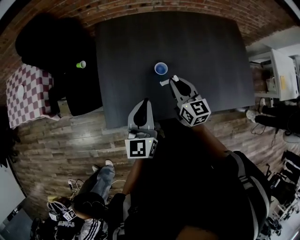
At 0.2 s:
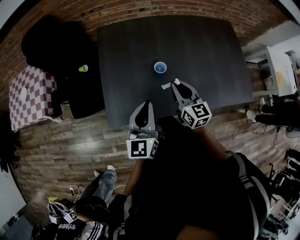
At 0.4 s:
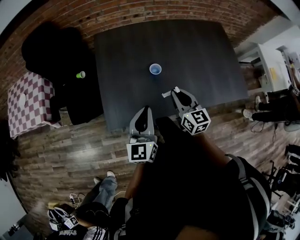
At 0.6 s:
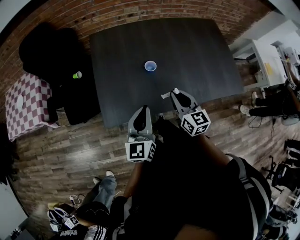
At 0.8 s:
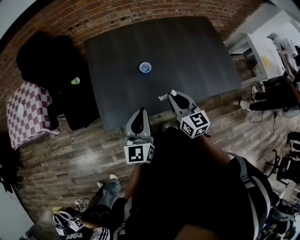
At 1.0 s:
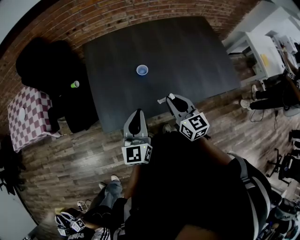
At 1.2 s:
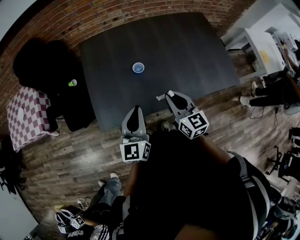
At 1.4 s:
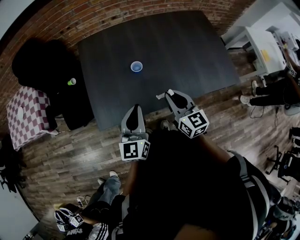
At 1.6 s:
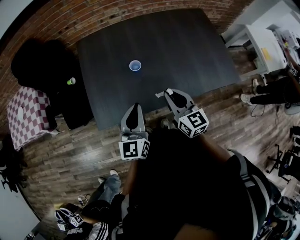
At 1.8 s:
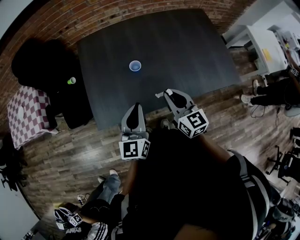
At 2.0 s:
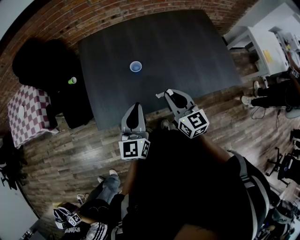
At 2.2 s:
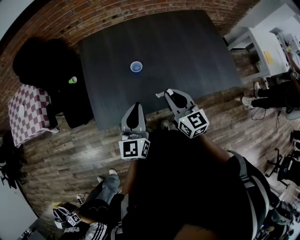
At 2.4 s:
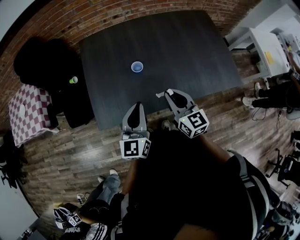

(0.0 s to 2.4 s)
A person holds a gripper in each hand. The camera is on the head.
0.0 s - 1.2 s: The left gripper travels backward by about 10 cm. The right gripper moves backward, some 15 cm.
1.2 s - 2.4 s: The grippers make only small movements.

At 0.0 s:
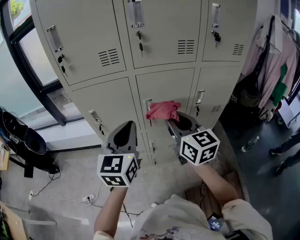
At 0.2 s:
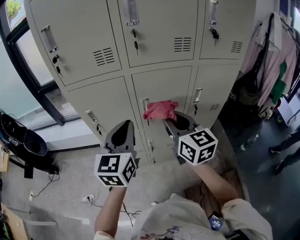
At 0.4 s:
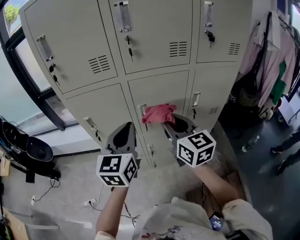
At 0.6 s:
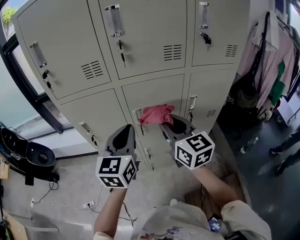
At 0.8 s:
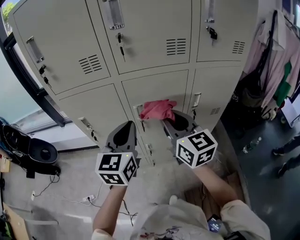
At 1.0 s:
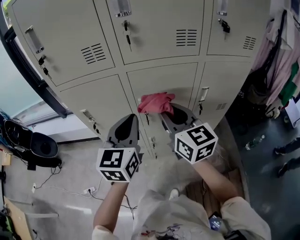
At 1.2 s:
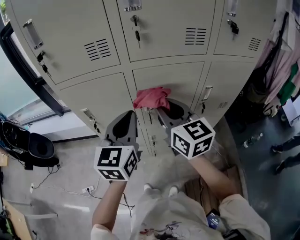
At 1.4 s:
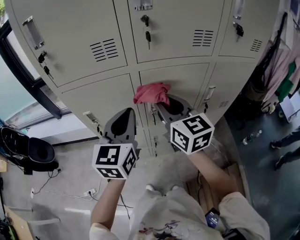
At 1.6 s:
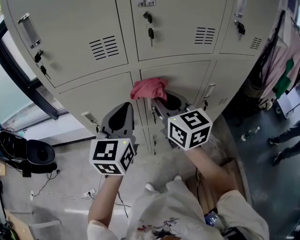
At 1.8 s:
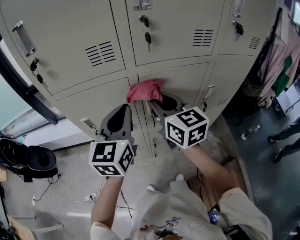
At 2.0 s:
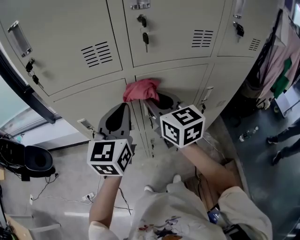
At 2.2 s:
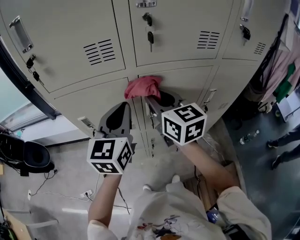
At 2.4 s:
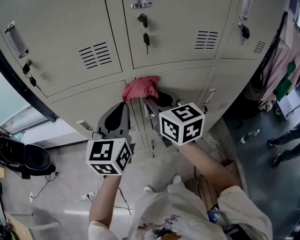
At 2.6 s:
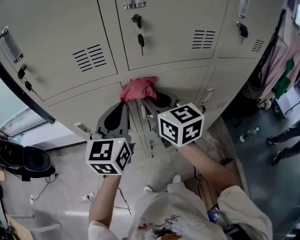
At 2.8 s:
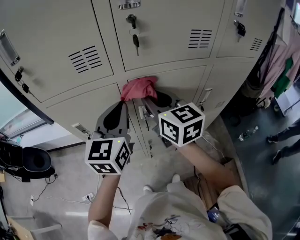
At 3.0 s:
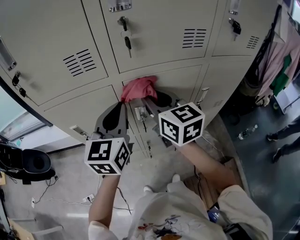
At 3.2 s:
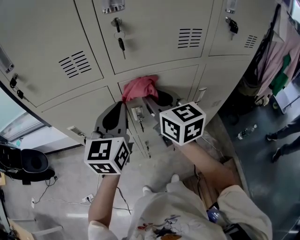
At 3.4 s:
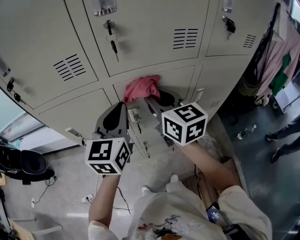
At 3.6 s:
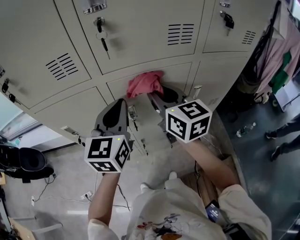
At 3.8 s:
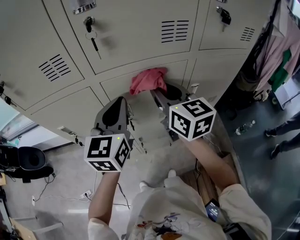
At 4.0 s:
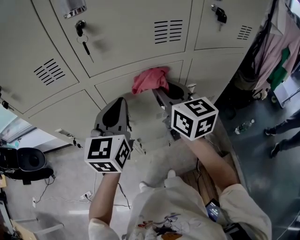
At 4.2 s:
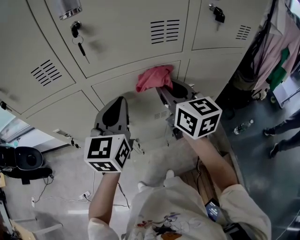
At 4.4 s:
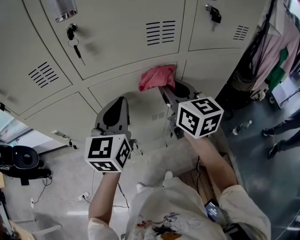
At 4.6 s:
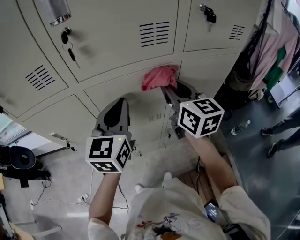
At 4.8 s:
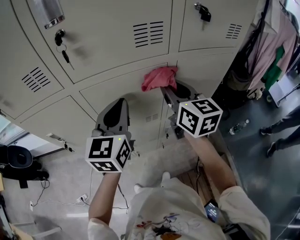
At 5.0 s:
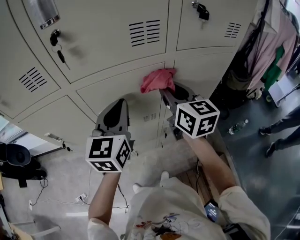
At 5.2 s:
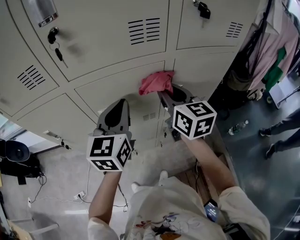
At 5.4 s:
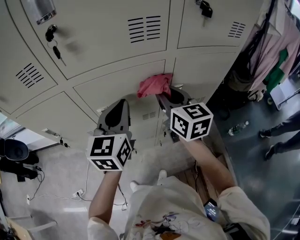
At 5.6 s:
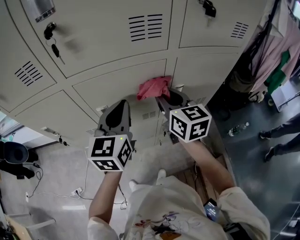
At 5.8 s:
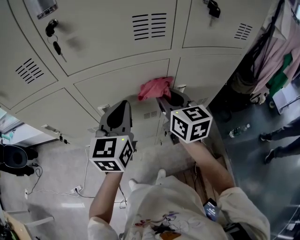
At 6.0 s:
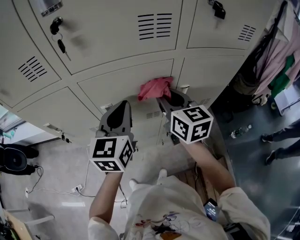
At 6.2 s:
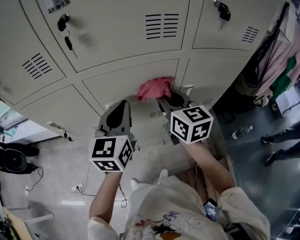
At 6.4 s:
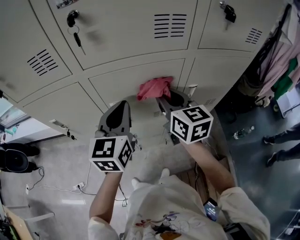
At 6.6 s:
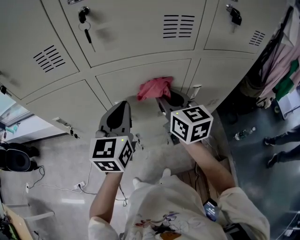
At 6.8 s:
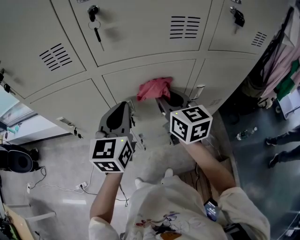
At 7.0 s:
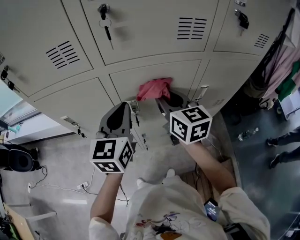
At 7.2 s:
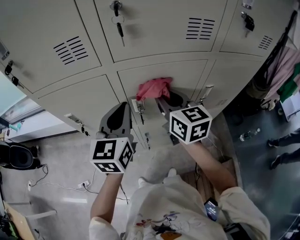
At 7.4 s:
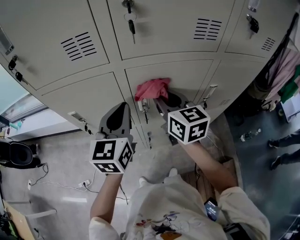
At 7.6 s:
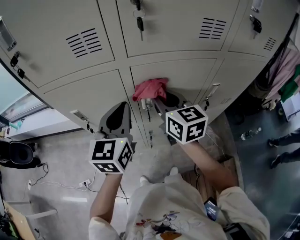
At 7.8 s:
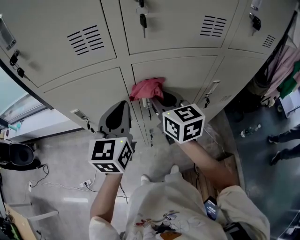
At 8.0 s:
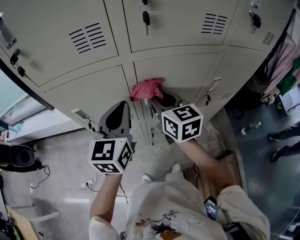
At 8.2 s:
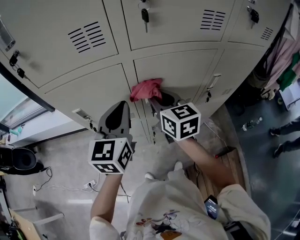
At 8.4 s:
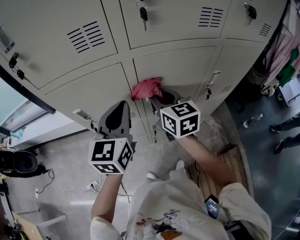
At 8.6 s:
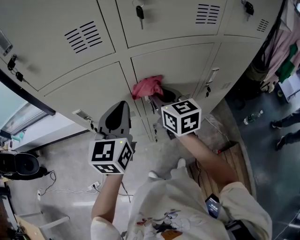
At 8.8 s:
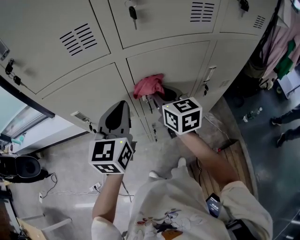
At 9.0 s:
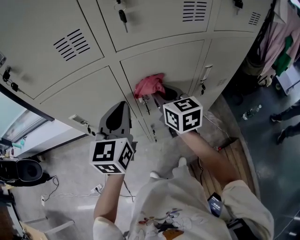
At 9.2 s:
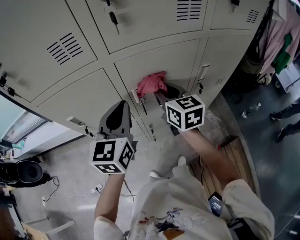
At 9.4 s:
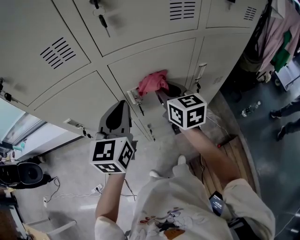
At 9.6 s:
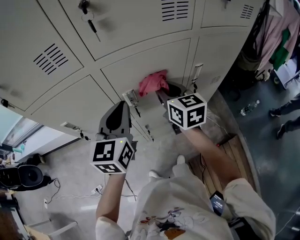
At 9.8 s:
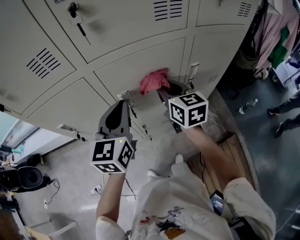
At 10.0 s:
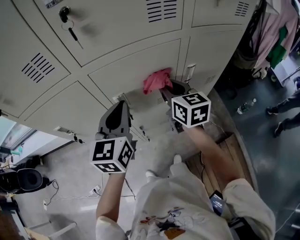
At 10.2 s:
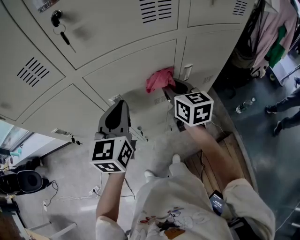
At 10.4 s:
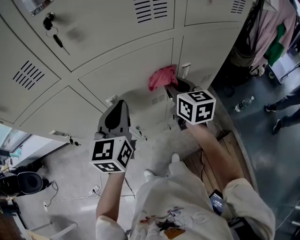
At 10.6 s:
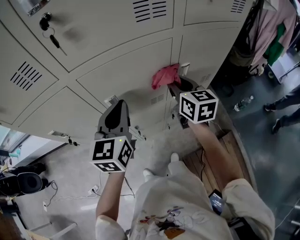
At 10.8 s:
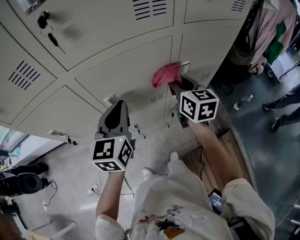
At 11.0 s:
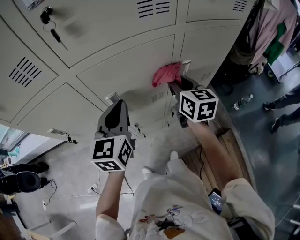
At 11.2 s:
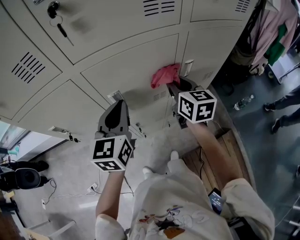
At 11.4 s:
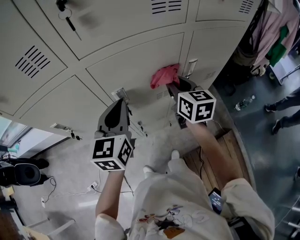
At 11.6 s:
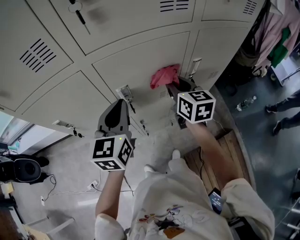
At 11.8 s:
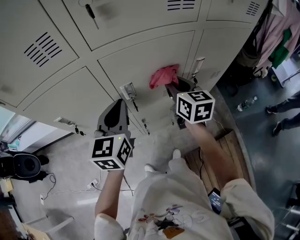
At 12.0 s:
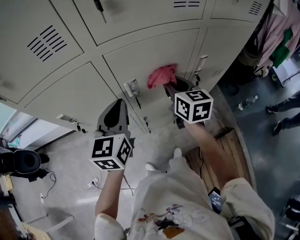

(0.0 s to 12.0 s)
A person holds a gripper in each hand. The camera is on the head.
0.0 s - 1.6 s: The right gripper travels forward and to the left by approximately 15 cm; the left gripper goes about 10 cm forward.
1.6 s - 3.0 s: The left gripper changes place by some 5 cm. Meanwhile the right gripper changes place by about 5 cm.
3.0 s - 4.4 s: The right gripper heads to the right, covering some 15 cm. The left gripper moves to the right, some 10 cm.
4.4 s - 6.0 s: The right gripper travels downward by approximately 5 cm. The left gripper moves approximately 5 cm.
6.0 s - 7.6 s: The grippers both shift to the left by roughly 15 cm.
7.6 s - 9.0 s: The grippers stay close to where they were, moving slightly.
9.0 s - 10.4 s: The left gripper heads to the right, covering some 10 cm, while the right gripper moves to the right, about 15 cm.
10.4 s - 12.0 s: The two grippers go some 10 cm to the left.

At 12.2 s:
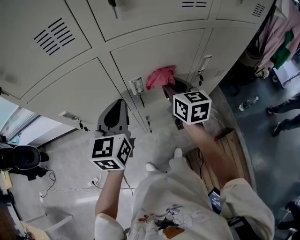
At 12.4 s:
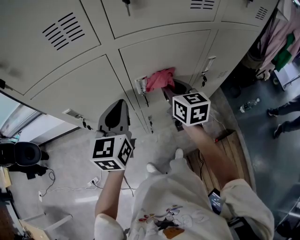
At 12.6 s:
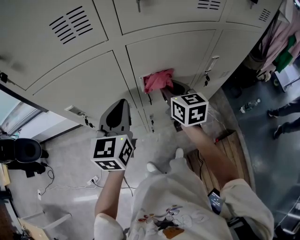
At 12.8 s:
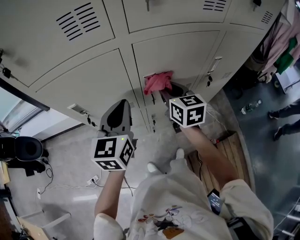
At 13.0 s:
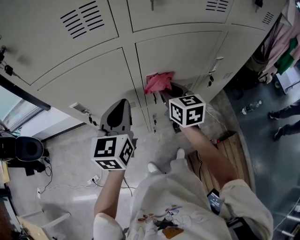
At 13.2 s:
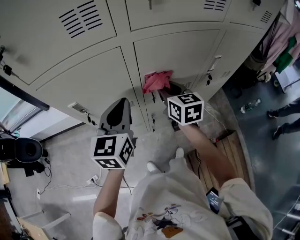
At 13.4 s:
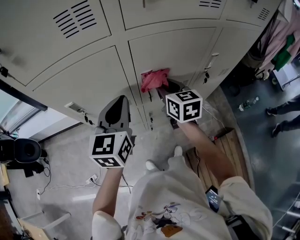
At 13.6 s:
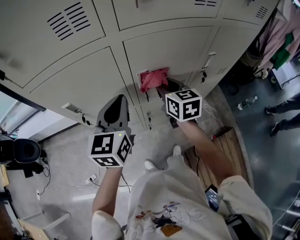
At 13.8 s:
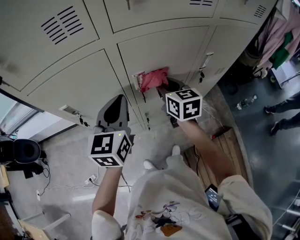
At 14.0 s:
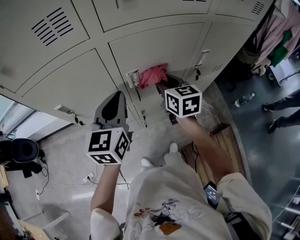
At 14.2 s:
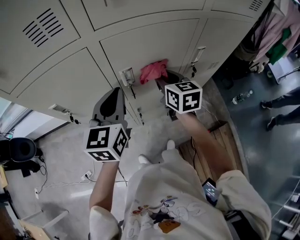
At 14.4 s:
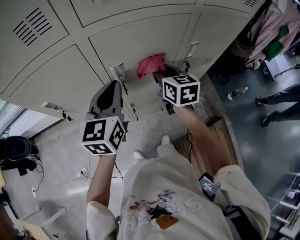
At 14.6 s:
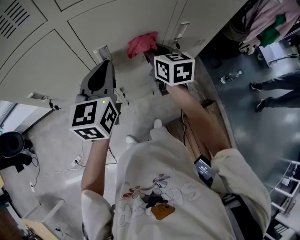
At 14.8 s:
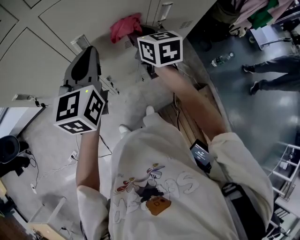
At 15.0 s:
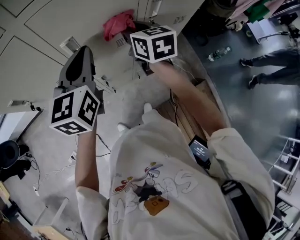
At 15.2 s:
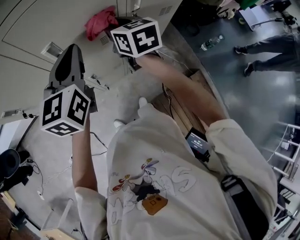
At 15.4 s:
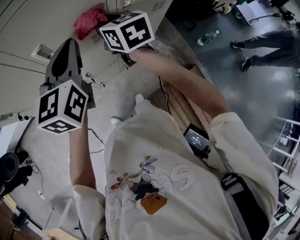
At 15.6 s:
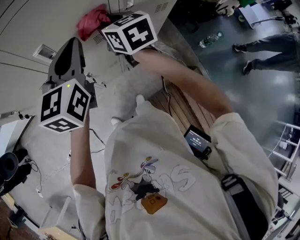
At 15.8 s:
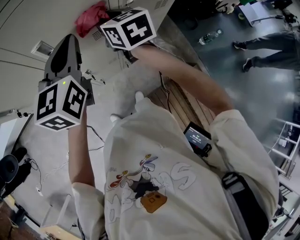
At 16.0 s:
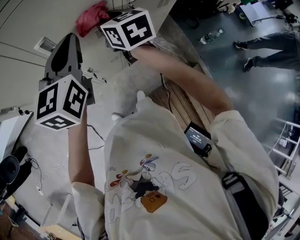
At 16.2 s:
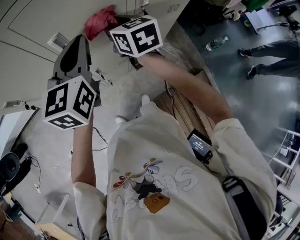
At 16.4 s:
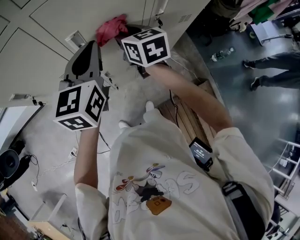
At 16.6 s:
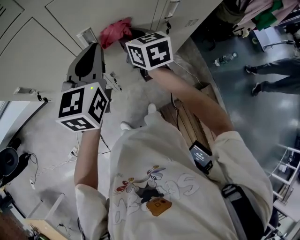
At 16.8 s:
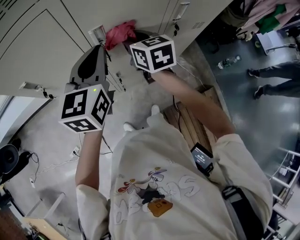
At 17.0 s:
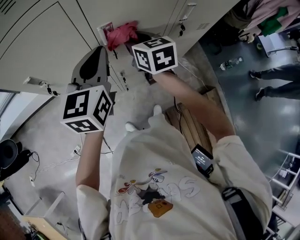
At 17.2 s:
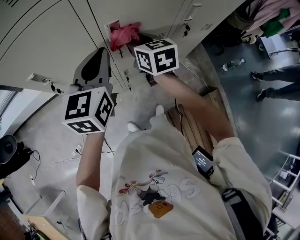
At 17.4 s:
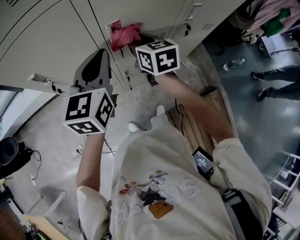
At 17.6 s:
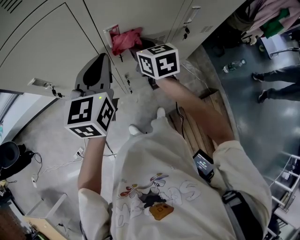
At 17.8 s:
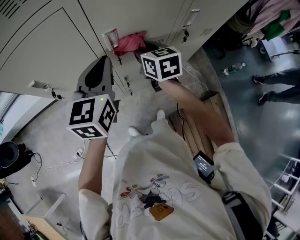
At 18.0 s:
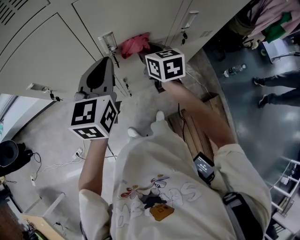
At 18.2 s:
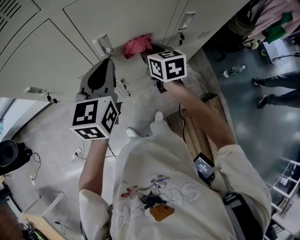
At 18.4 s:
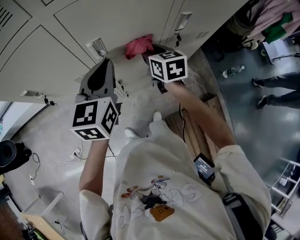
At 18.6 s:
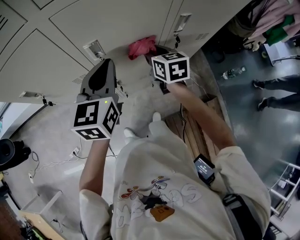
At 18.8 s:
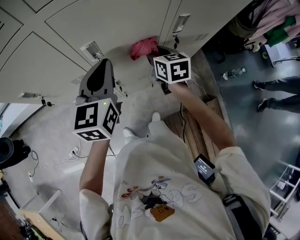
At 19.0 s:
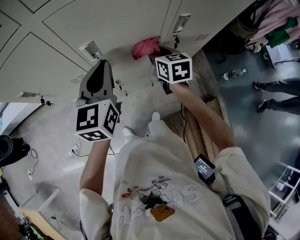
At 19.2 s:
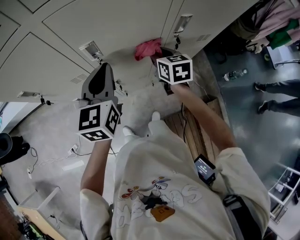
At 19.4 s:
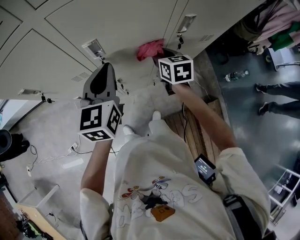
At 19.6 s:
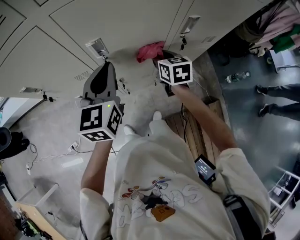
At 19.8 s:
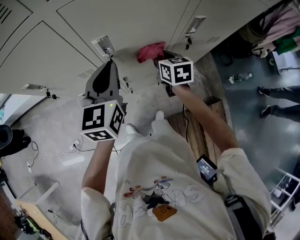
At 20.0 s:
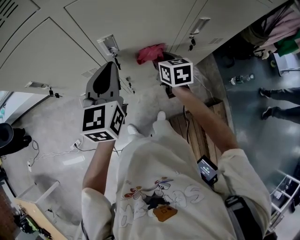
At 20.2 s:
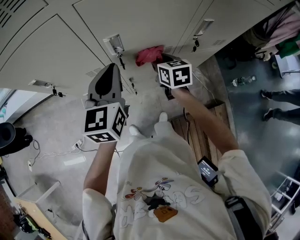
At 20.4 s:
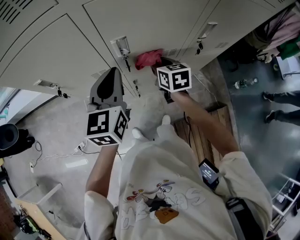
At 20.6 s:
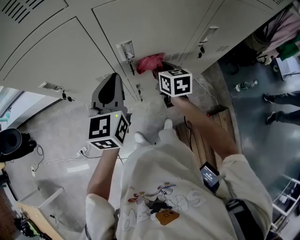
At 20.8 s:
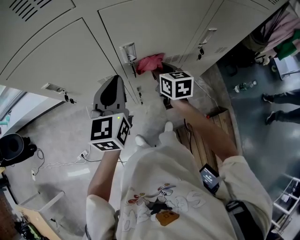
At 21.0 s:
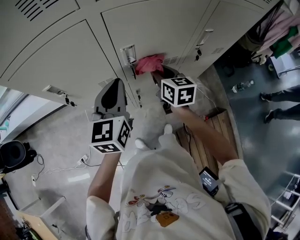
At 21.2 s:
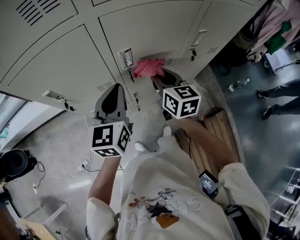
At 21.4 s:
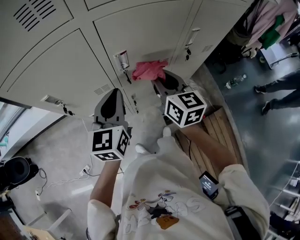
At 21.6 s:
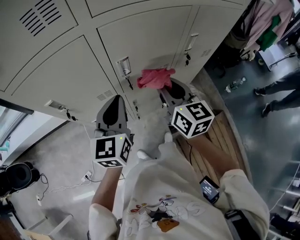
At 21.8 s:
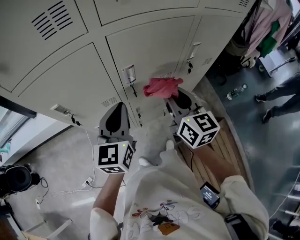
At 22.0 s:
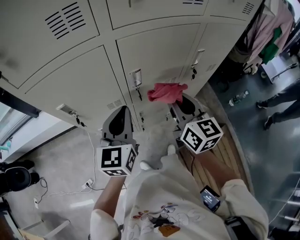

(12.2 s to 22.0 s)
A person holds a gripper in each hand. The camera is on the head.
12.2 s - 13.6 s: The right gripper is displaced to the left by about 5 cm.
13.6 s - 15.0 s: The two grippers go about 10 cm to the right.
15.0 s - 16.4 s: The right gripper moves approximately 5 cm.
16.4 s - 17.8 s: The grippers both shift to the left by some 5 cm.
17.8 s - 19.2 s: The right gripper goes roughly 15 cm to the right and downward, while the left gripper travels to the right by approximately 5 cm.
19.2 s - 20.6 s: The two grippers go roughly 10 cm to the left.
20.6 s - 22.0 s: The left gripper changes place by about 5 cm; the right gripper travels upward and backward by roughly 20 cm, and rotates approximately 30 degrees.
